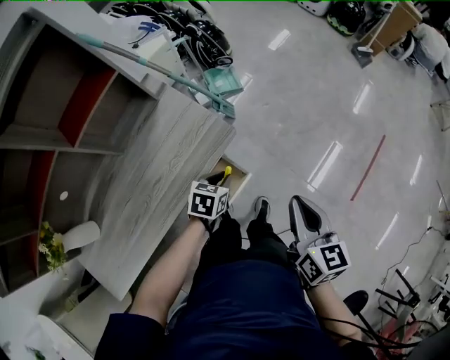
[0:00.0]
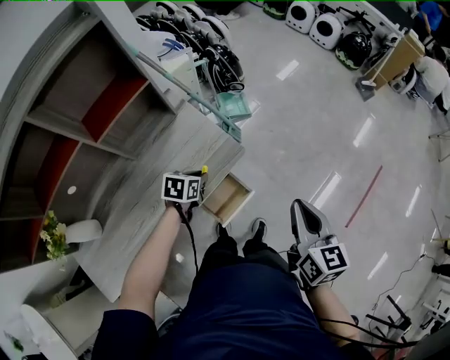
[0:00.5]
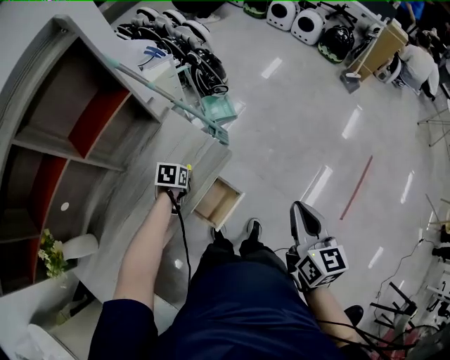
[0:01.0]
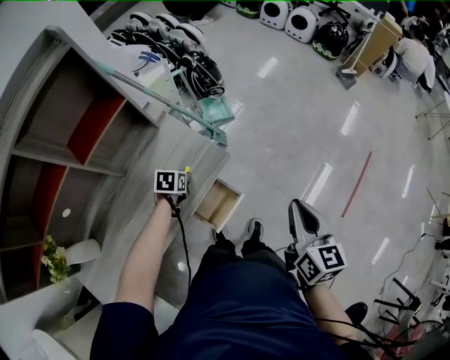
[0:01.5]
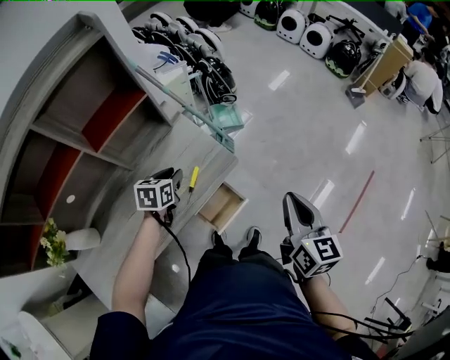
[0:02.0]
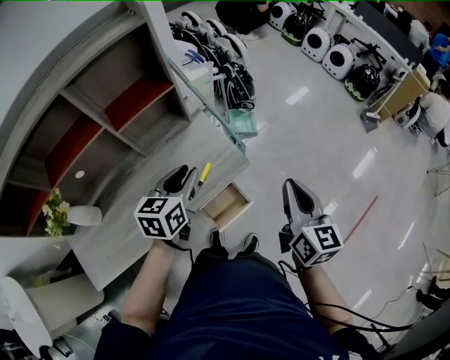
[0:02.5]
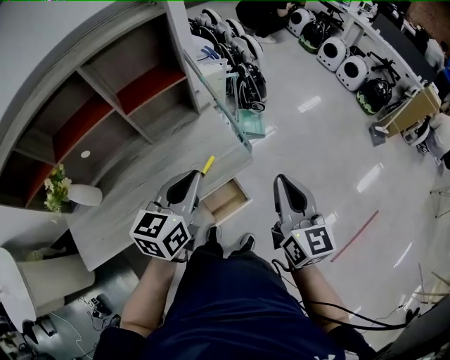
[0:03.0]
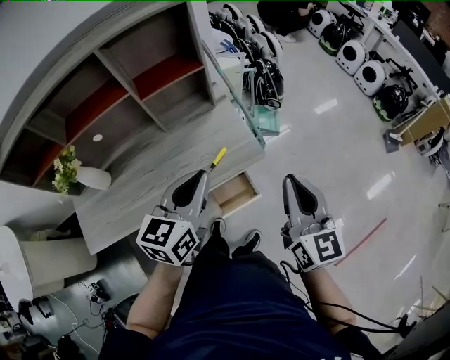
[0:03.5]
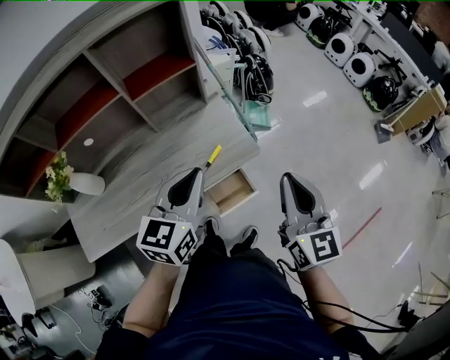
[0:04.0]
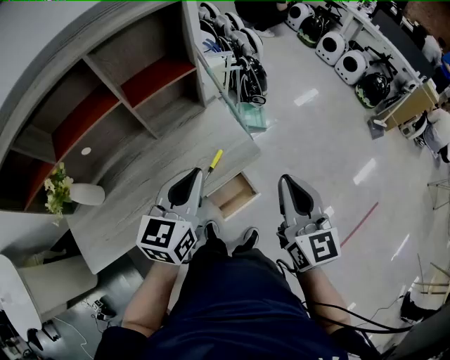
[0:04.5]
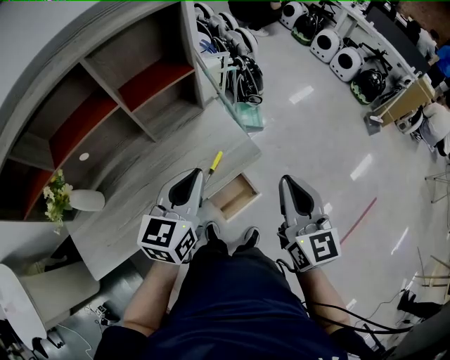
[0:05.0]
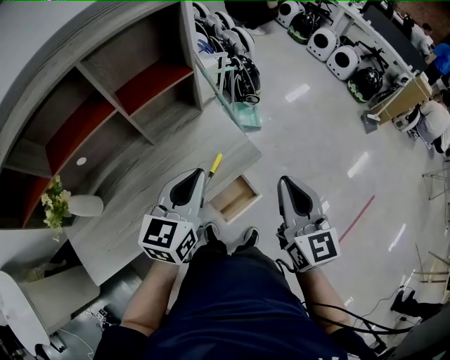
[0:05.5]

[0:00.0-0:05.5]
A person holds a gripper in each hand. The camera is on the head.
0:00.0 to 0:02.0: The right gripper heads upward, covering some 5 cm. The left gripper travels to the left and upward by about 20 cm, and turns by some 20 degrees.
0:02.0 to 0:03.5: The right gripper moves upward and to the left, roughly 10 cm, and turns by about 30 degrees, while the left gripper travels upward and backward by about 25 cm, points its fingers some 30 degrees further upward, and closes.
0:03.5 to 0:05.5: The right gripper shifts about 5 cm to the left. Meanwhile the left gripper shifts by approximately 5 cm.

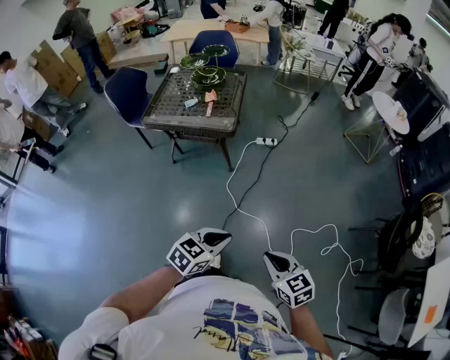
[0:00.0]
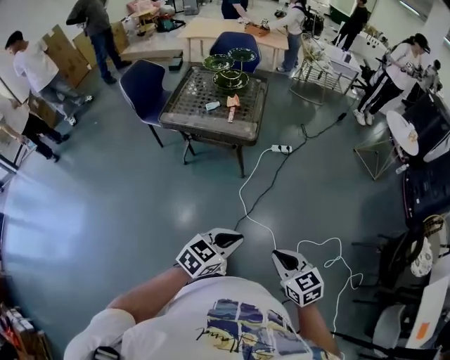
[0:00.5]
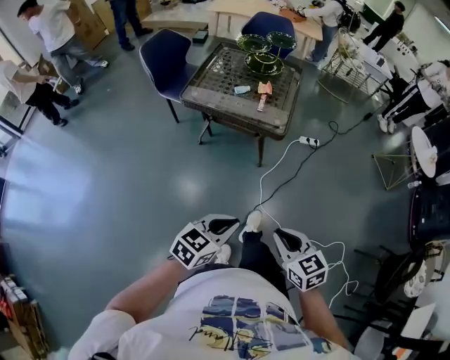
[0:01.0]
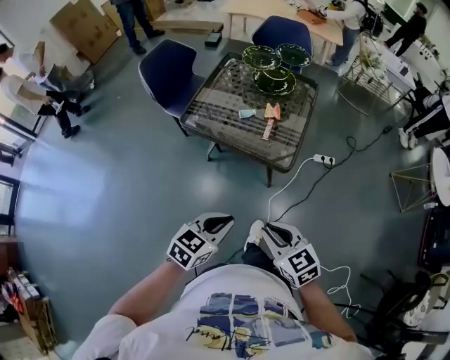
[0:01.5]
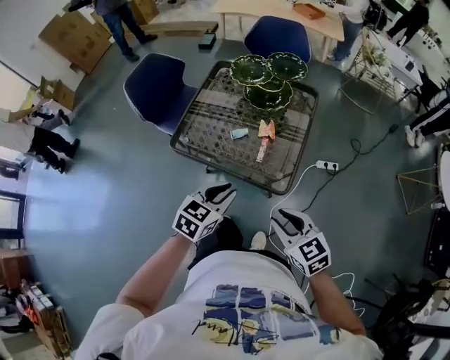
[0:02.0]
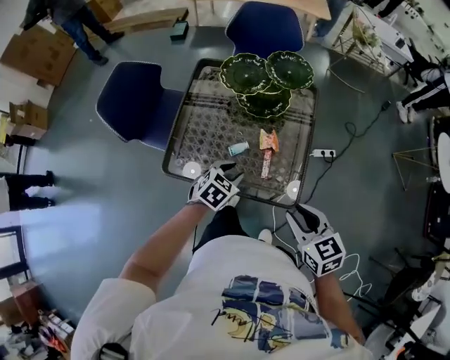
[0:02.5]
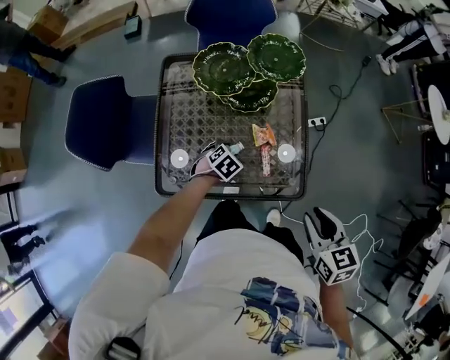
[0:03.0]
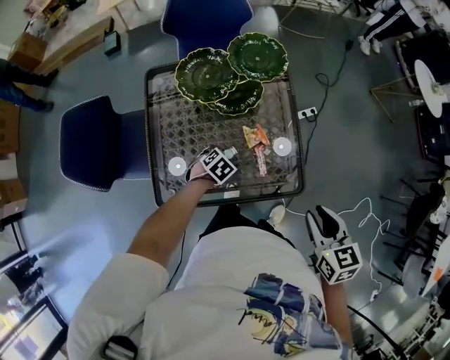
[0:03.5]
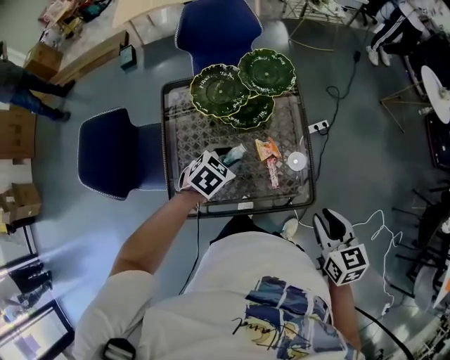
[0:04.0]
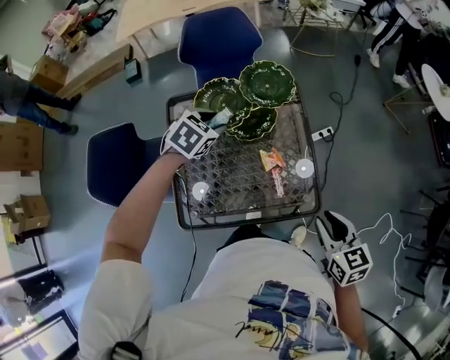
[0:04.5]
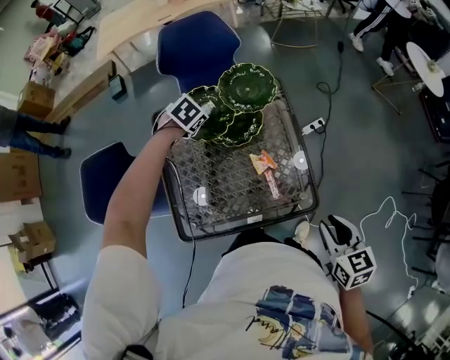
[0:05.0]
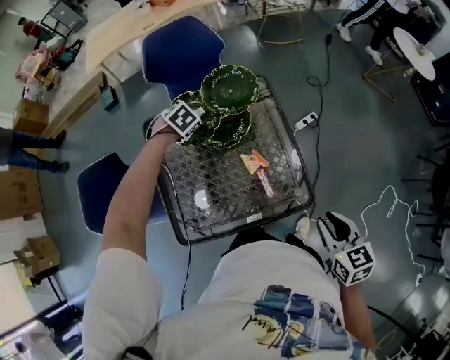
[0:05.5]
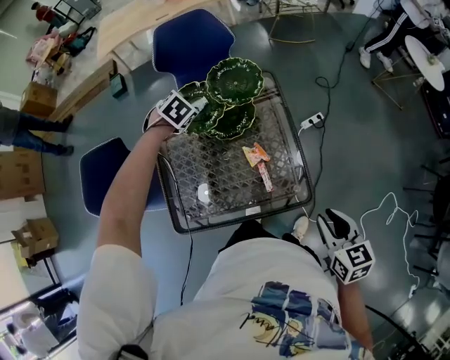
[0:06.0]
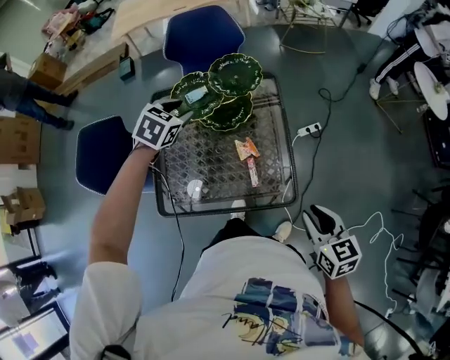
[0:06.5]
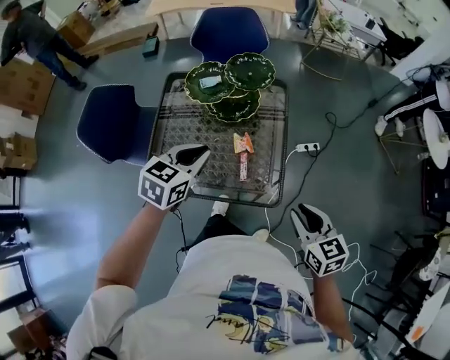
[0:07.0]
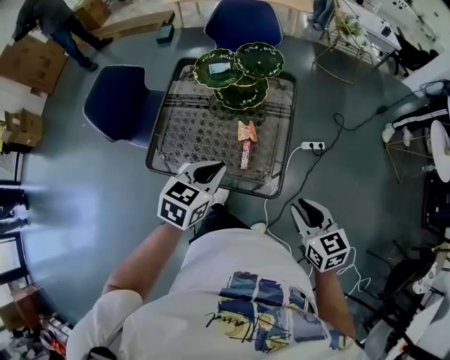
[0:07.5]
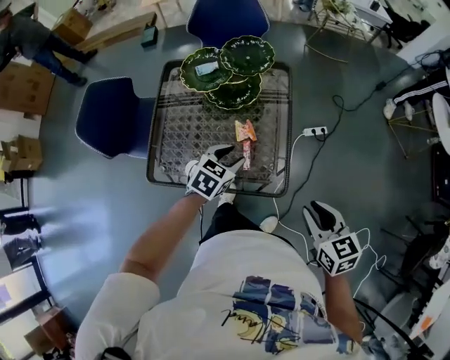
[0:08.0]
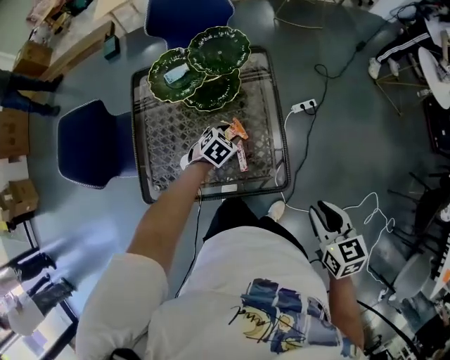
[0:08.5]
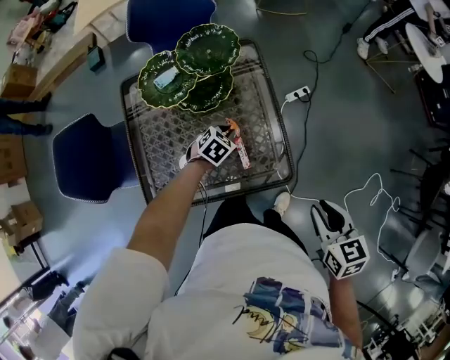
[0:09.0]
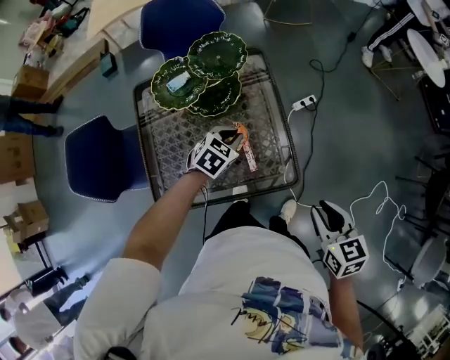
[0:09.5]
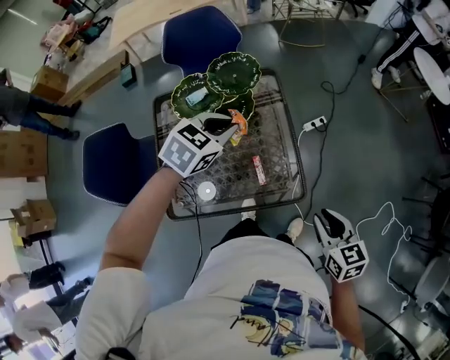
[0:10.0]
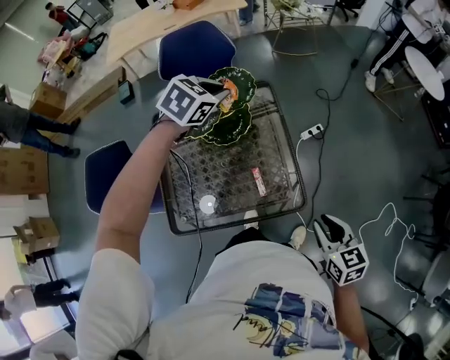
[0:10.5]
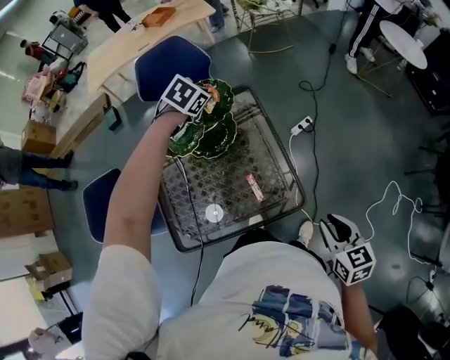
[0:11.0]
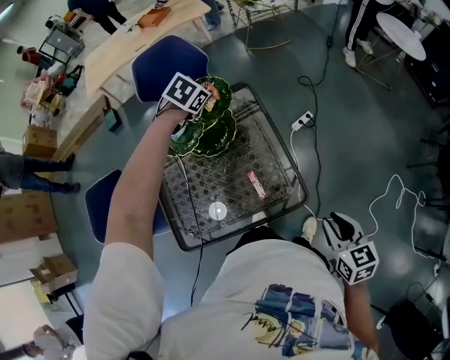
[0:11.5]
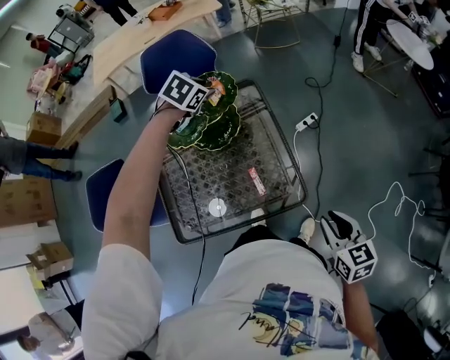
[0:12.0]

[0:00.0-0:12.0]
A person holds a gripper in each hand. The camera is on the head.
0:00.0 to 0:02.0: Both grippers are carried forward, roughly 60 cm. The left gripper rotates roughly 20 degrees. Meanwhile the right gripper swivels about 20 degrees, and opens.
0:02.0 to 0:04.0: The left gripper changes place by some 35 cm, changes its angle by roughly 40 degrees, and opens its fingers. The right gripper changes place by approximately 15 cm, and rotates approximately 50 degrees.
0:04.0 to 0:06.0: The left gripper moves up and down over some 10 cm, changing direction 2 times, and rotates about 20 degrees.
0:06.0 to 0:08.0: The left gripper shifts roughly 35 cm backward and to the right, swivels approximately 40 degrees, and closes, then reopens. Meanwhile the right gripper travels to the right by approximately 5 cm, and turns by about 20 degrees.
0:08.0 to 0:10.0: The left gripper goes about 20 cm upward and forward, turns by about 20 degrees, and closes.
0:10.0 to 0:12.0: The left gripper moves forward, some 20 cm, and opens.

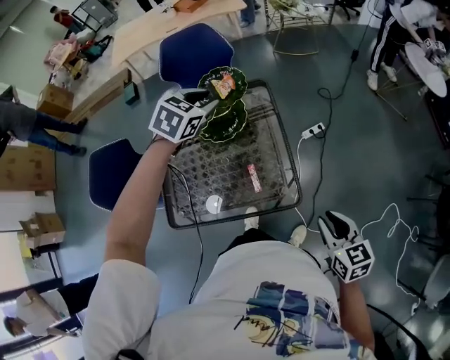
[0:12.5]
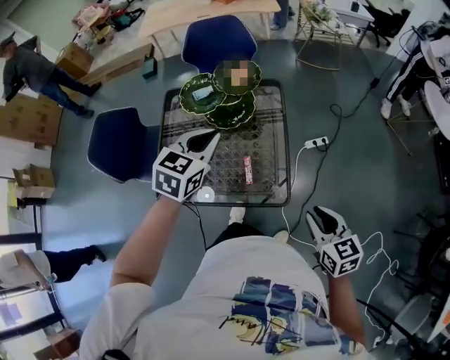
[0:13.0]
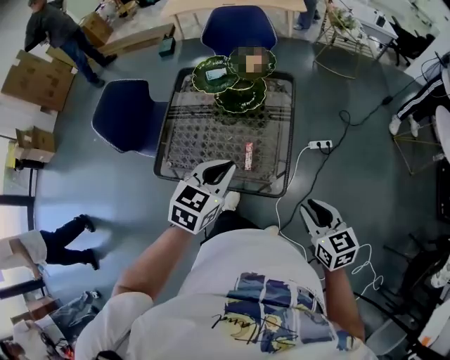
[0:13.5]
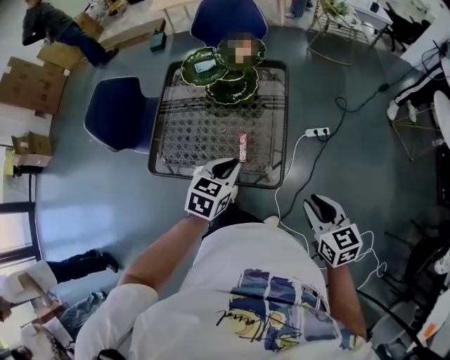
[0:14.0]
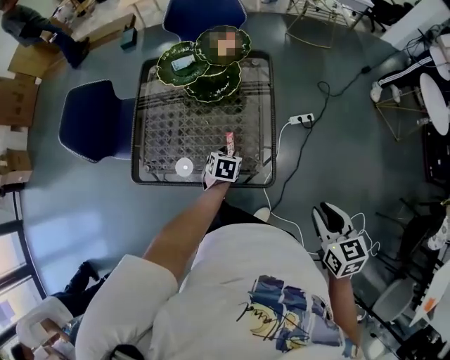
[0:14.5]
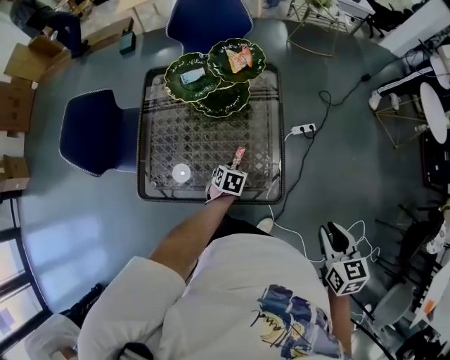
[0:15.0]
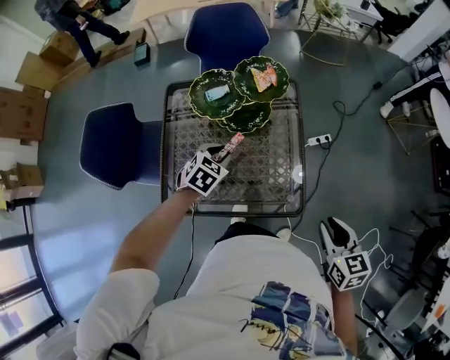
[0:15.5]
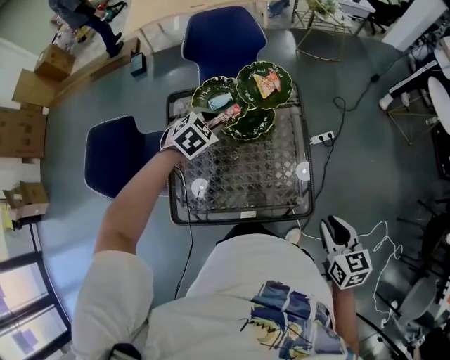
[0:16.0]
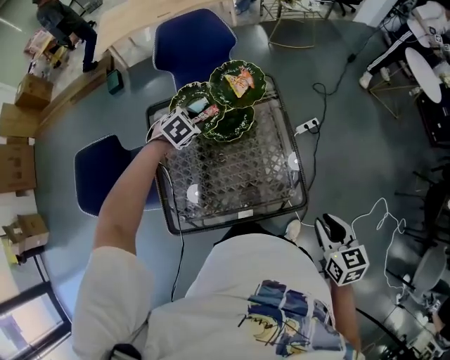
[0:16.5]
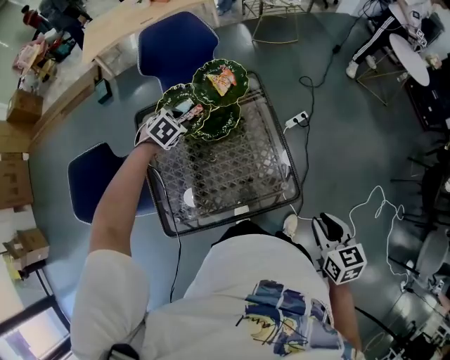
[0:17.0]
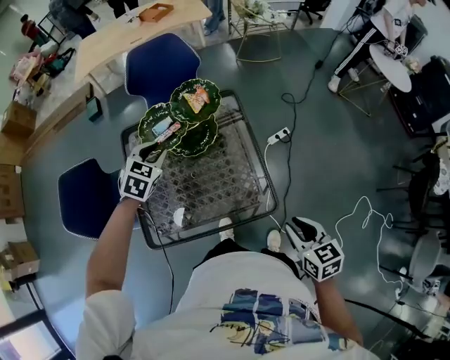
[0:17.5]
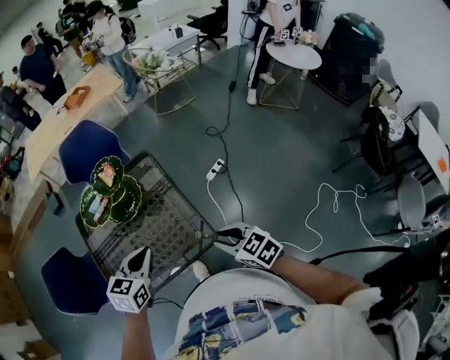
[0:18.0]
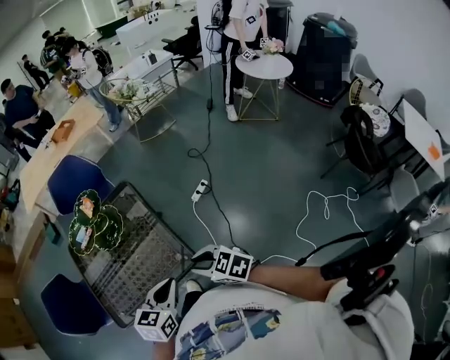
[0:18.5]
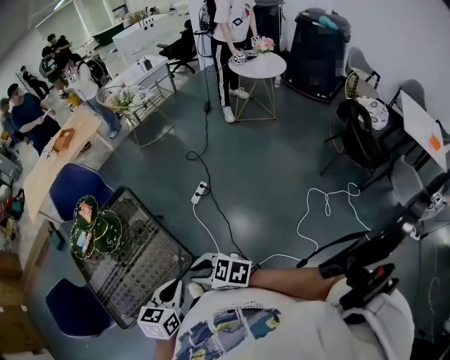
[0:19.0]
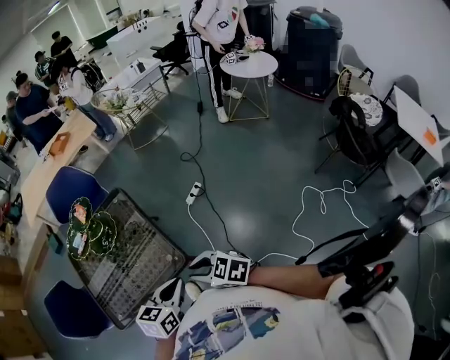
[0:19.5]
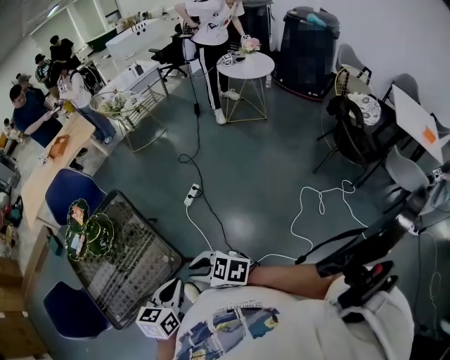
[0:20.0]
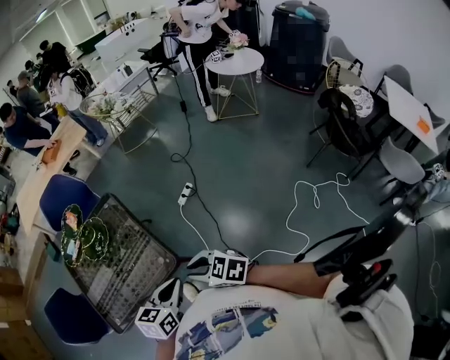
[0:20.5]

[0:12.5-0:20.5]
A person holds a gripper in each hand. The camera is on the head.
0:12.5 to 0:14.5: The right gripper heads to the right, covering about 5 cm; the left gripper travels downward and backward by roughly 40 cm, turns by some 40 degrees, and closes and opens again.
0:14.5 to 0:16.5: The right gripper travels to the left by some 15 cm. Meanwhile the left gripper moves forward, to the left and upward, about 35 cm, and twists some 50 degrees clockwise, seen from behind.
0:16.5 to 0:18.5: The right gripper moves to the right, about 5 cm, and rotates approximately 30 degrees. Meanwhile the left gripper heads backward and to the right, covering about 50 cm, points its fingers some 30 degrees further upward, and closes up.
0:18.5 to 0:20.5: The left gripper goes approximately 10 cm to the right and backward; the right gripper moves backward and to the right, approximately 10 cm.

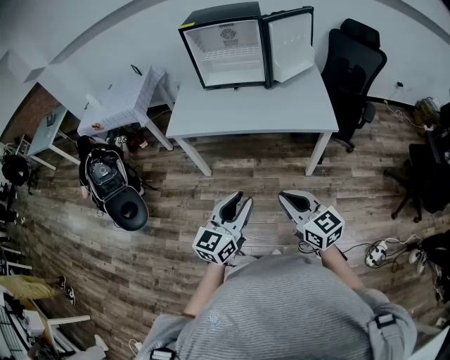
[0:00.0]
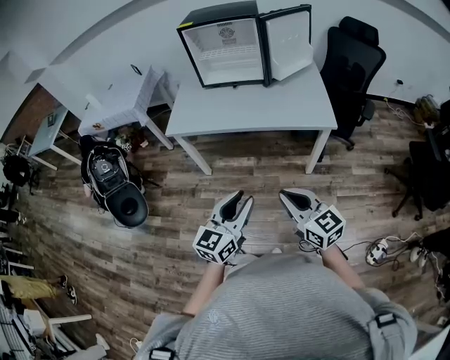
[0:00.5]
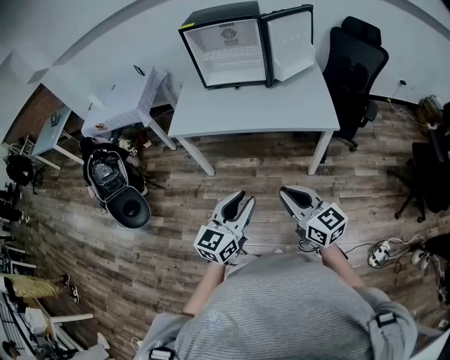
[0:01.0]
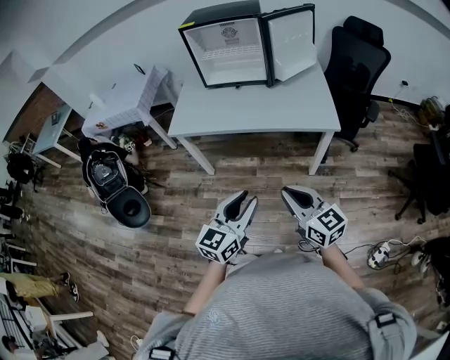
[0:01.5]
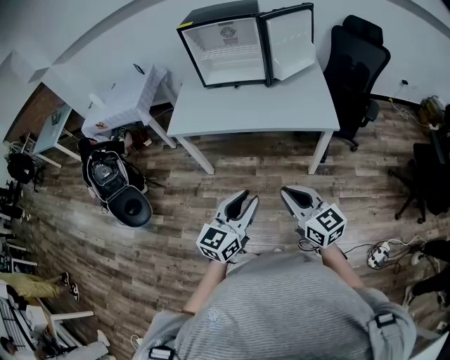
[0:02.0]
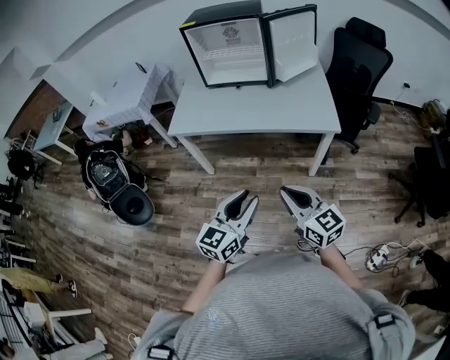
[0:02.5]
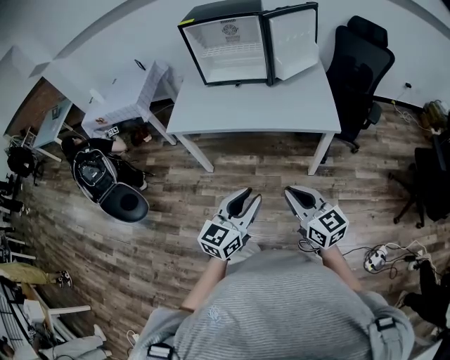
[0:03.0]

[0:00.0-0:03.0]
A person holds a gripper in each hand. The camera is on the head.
0:00.0 to 0:03.0: The grippers move only a little.
